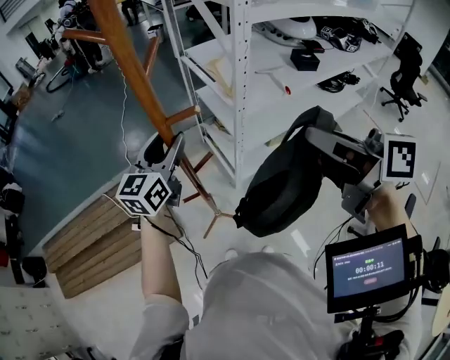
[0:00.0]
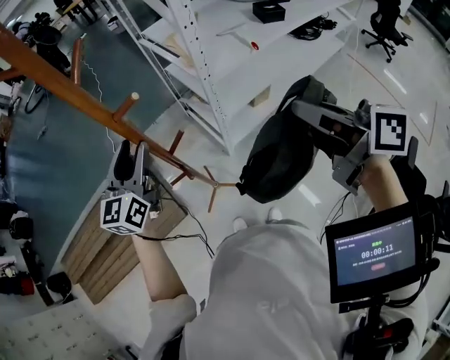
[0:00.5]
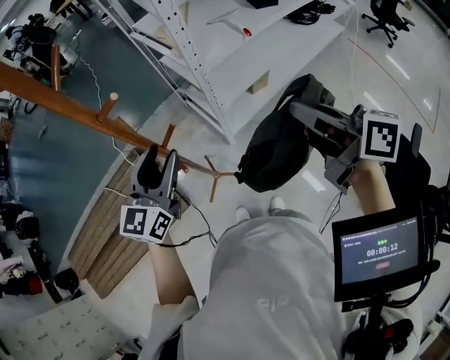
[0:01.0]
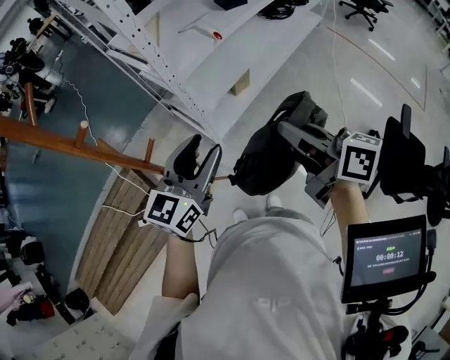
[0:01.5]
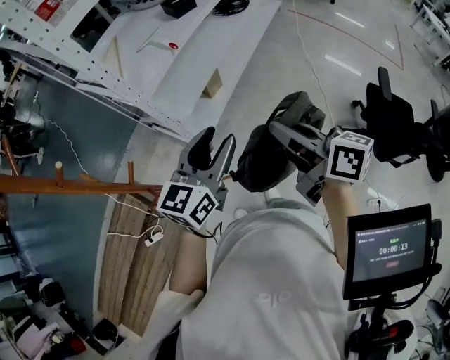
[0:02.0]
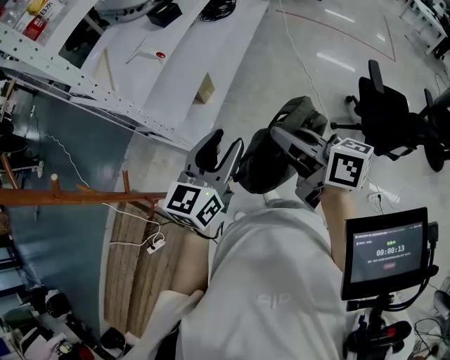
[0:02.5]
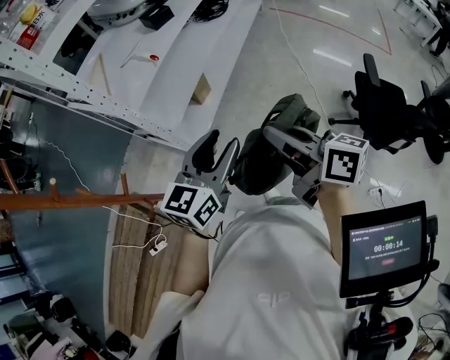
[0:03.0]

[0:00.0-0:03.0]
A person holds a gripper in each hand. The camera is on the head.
0:00.0 to 0:01.5: The right gripper goes approximately 15 cm downward, and changes its angle by some 20 degrees. The left gripper ends up some 25 cm from where it was, and rotates approximately 30 degrees.
0:01.5 to 0:03.0: The right gripper travels to the right by some 10 cm; the left gripper travels to the right by roughly 15 cm.

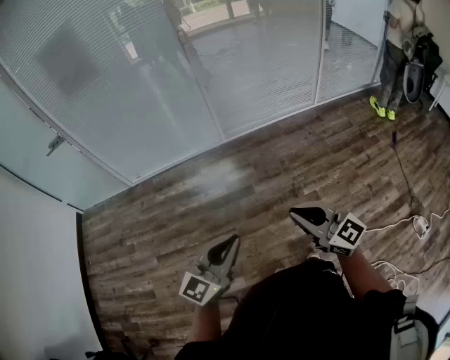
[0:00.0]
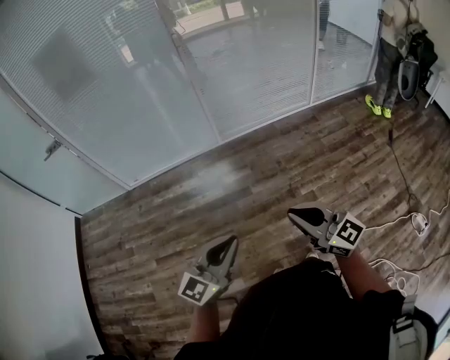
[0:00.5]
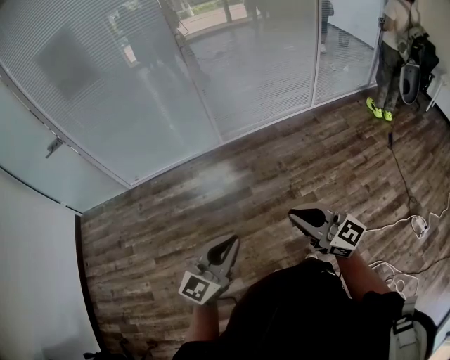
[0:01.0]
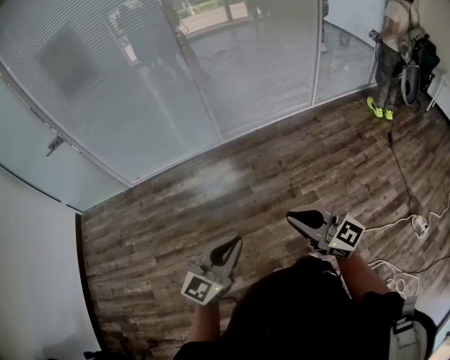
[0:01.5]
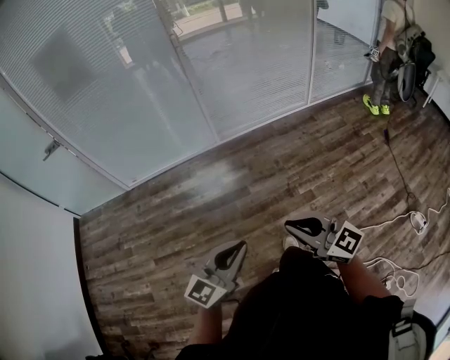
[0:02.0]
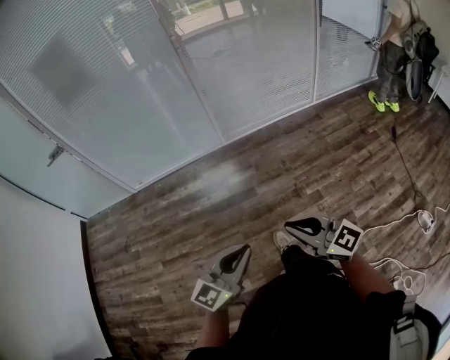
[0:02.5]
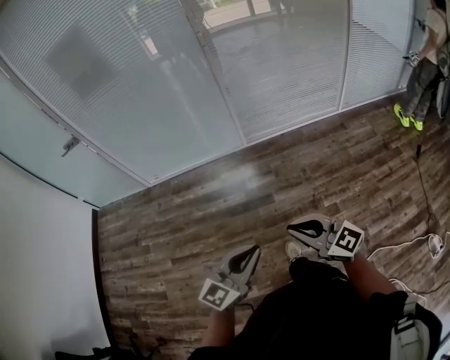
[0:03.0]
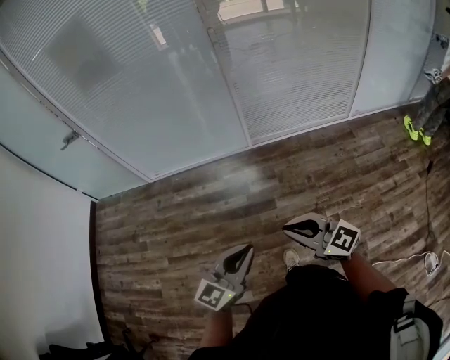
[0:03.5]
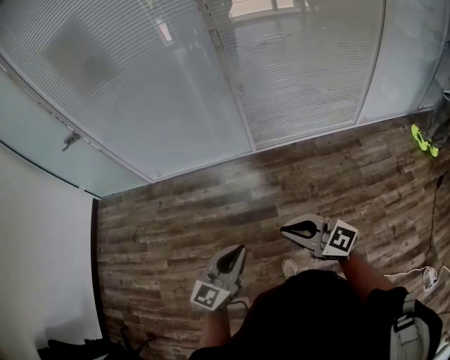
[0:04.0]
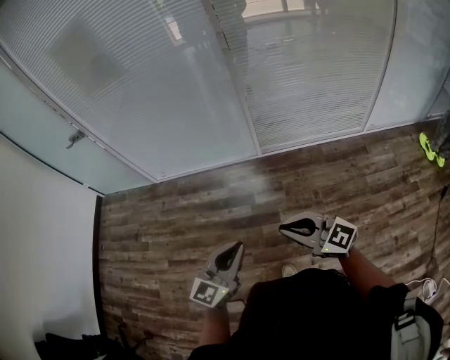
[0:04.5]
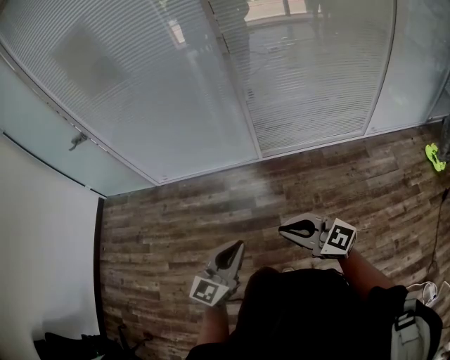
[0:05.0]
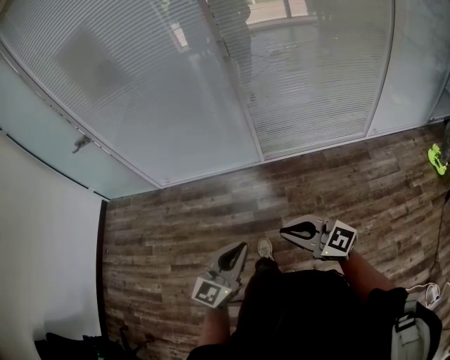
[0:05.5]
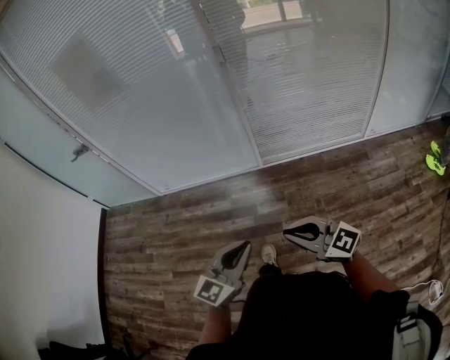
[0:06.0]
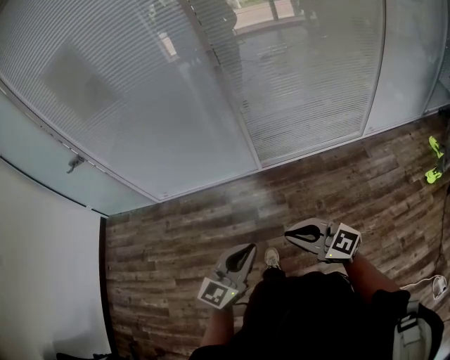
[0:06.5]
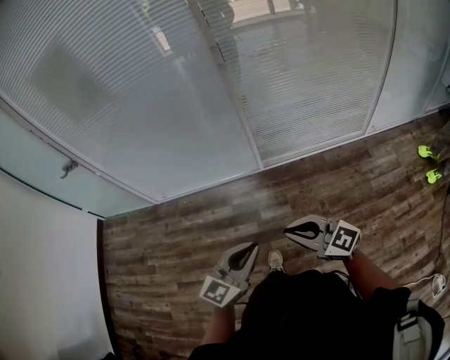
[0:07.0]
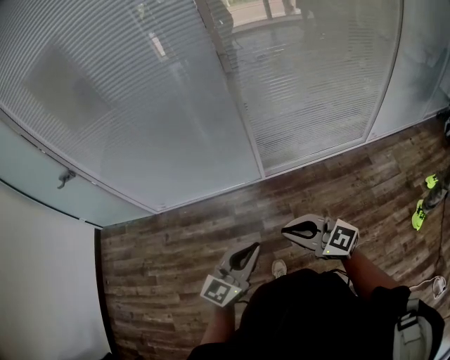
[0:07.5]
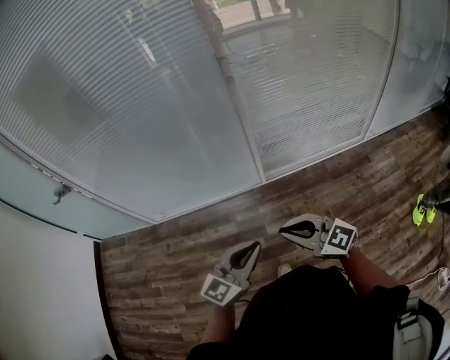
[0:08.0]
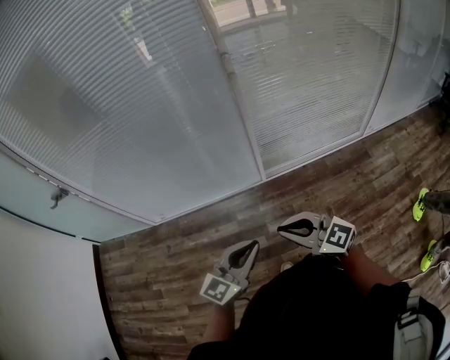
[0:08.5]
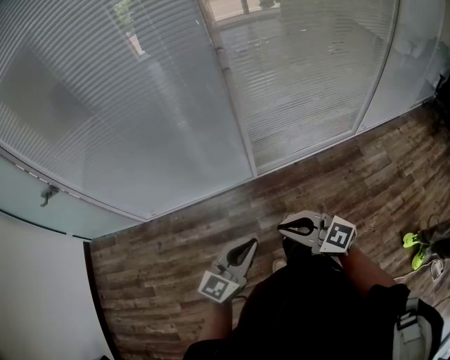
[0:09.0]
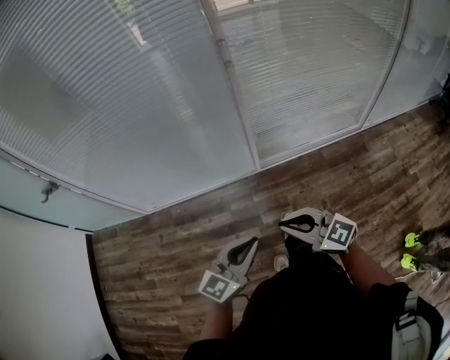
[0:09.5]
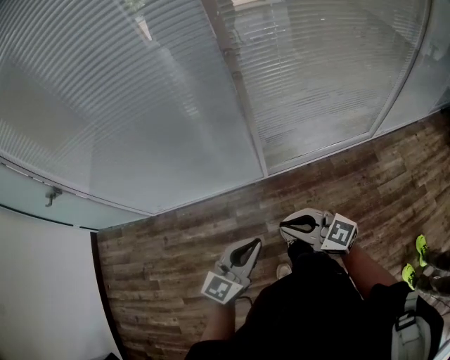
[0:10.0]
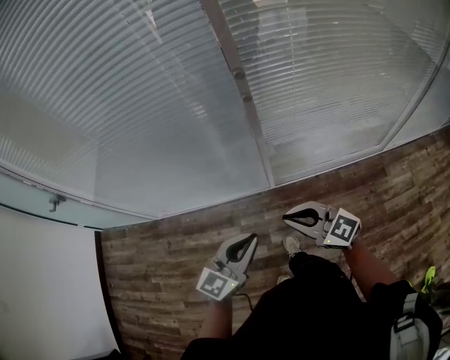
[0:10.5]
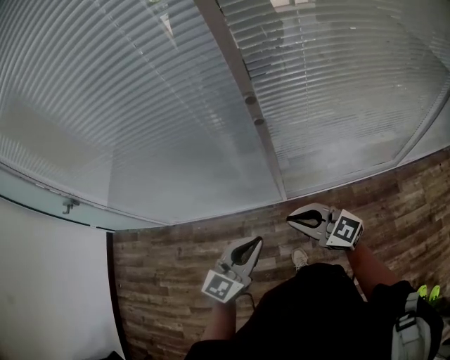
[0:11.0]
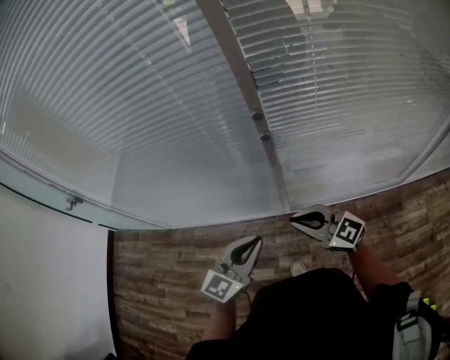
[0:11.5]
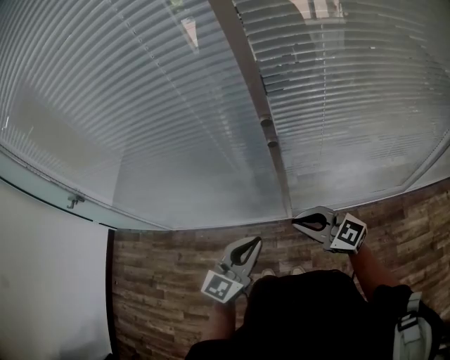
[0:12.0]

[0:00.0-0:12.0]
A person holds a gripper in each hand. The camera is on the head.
0:00.0 to 0:02.0: The grippers make only small movements.
0:02.0 to 0:04.0: The grippers both shift forward by approximately 25 cm. The right gripper turns by roughly 20 degrees.
0:04.0 to 0:06.0: The left gripper shifts by approximately 5 cm. Meanwhile the right gripper ends up some 5 cm from where it was.
0:06.0 to 0:08.0: The grippers both shift forward by approximately 20 cm.
0:08.0 to 0:10.0: The grippers both shift forward by roughly 10 cm.
0:10.0 to 0:12.0: The left gripper moves forward, roughly 20 cm, while the right gripper goes approximately 20 cm forward and to the right.

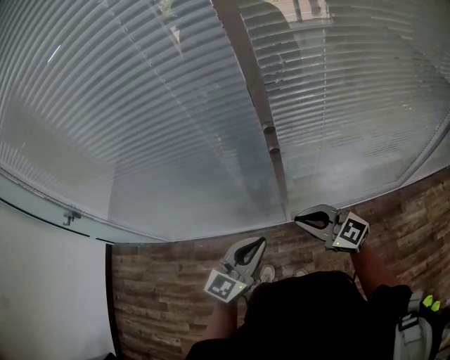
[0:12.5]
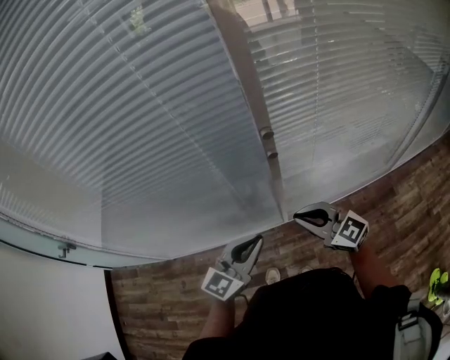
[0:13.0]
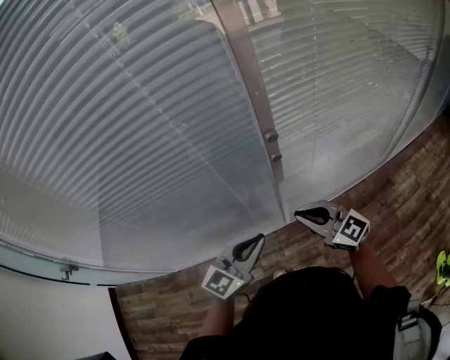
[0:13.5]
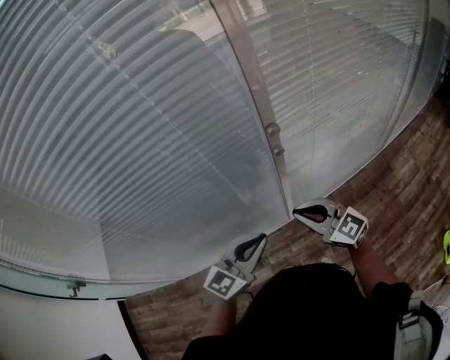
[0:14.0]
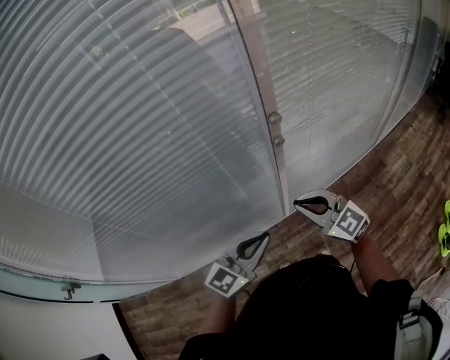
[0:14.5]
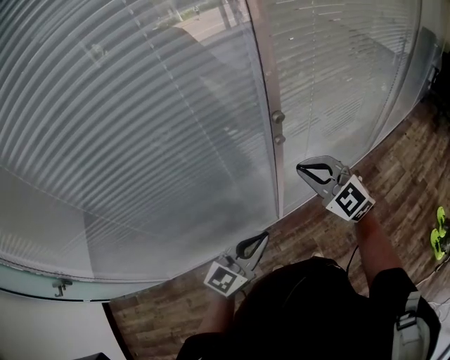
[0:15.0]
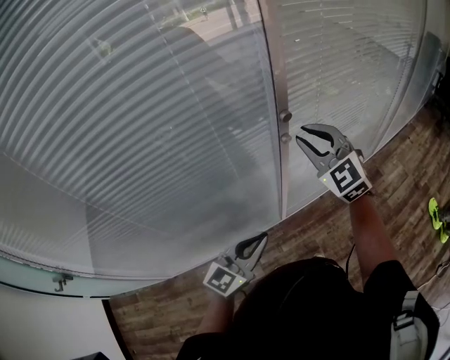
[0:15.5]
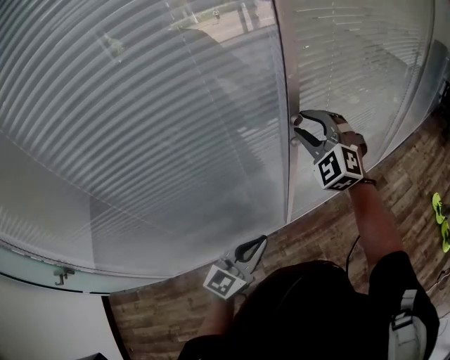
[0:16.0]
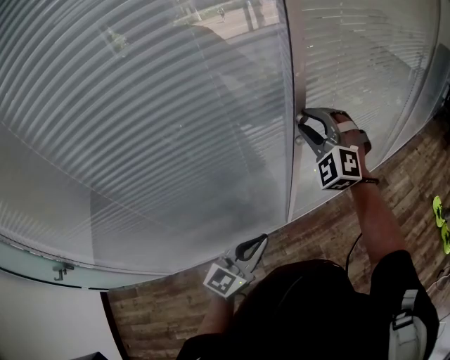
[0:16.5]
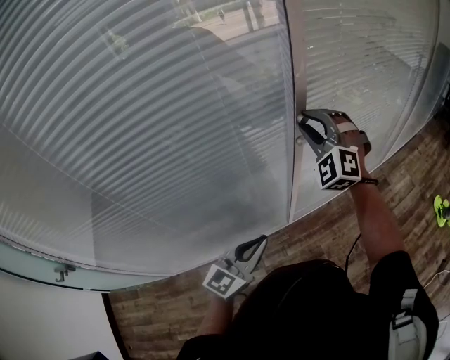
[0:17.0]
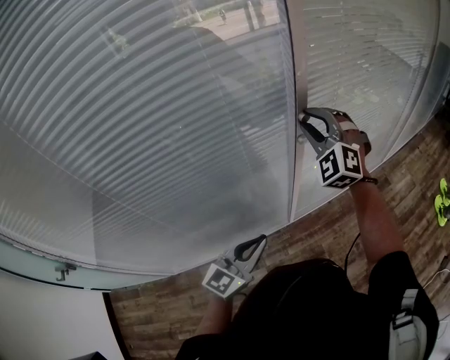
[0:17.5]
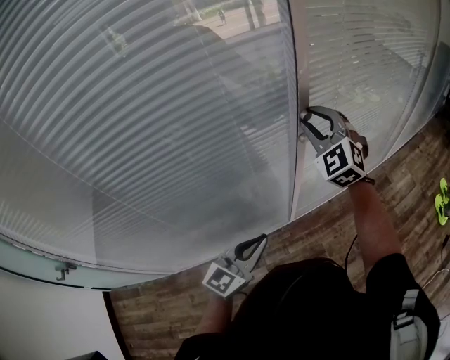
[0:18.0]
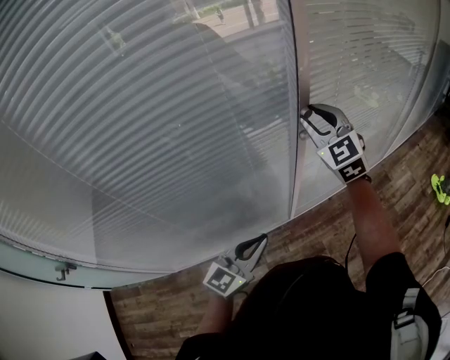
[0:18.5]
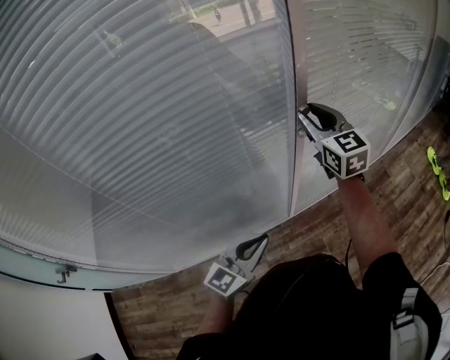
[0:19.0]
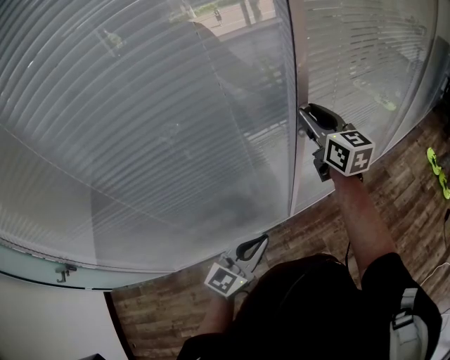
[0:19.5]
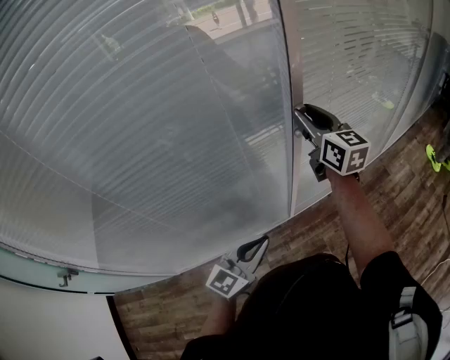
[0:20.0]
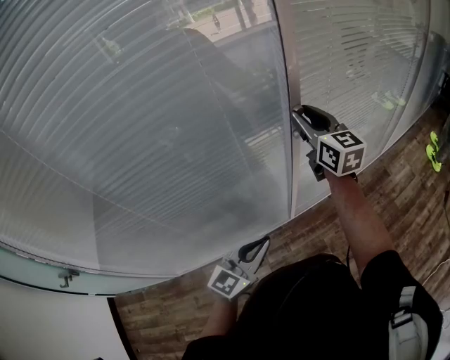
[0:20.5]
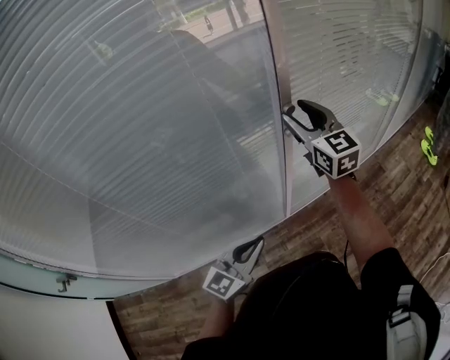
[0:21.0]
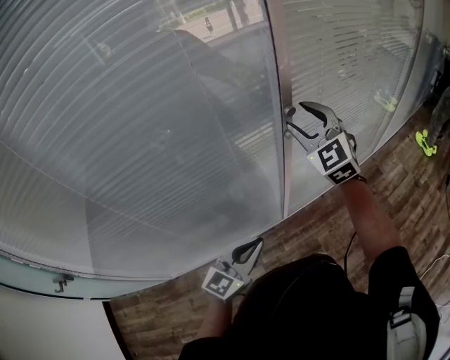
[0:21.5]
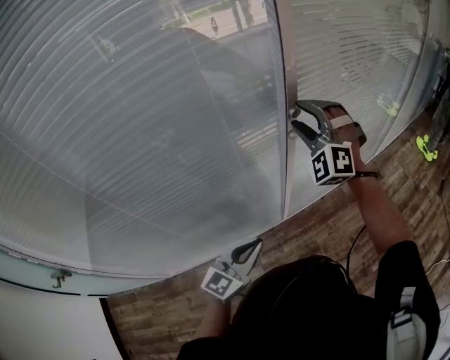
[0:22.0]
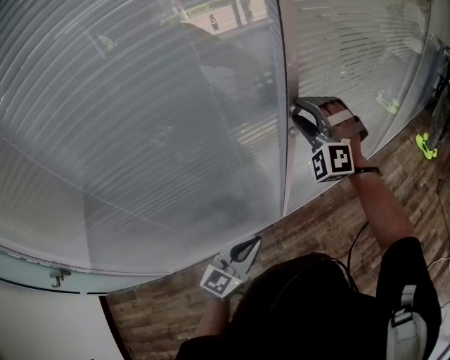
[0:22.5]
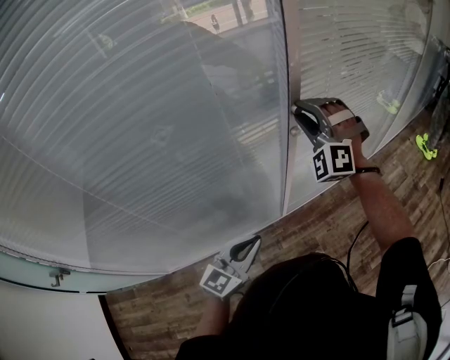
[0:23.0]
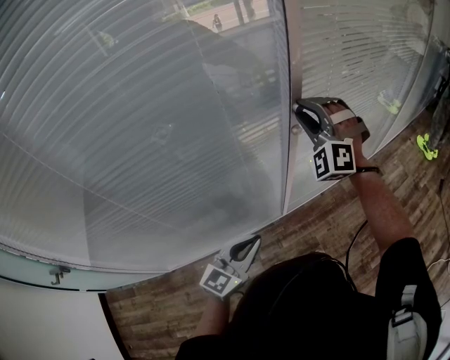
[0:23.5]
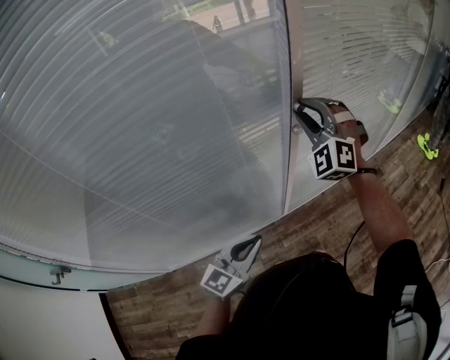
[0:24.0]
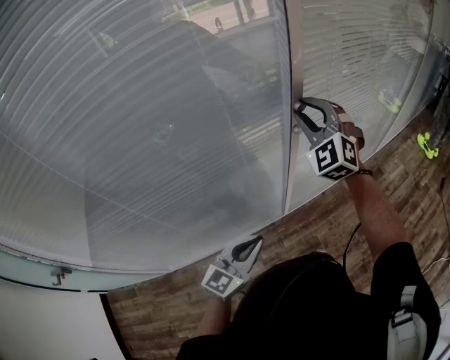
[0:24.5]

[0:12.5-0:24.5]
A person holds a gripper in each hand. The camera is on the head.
0:12.5 to 0:14.5: The left gripper moves some 10 cm, and swivels roughly 30 degrees. The right gripper shifts by approximately 10 cm, and rotates roughly 30 degrees.
0:14.5 to 0:16.5: The right gripper travels forward and upward by some 20 cm, rolls counterclockwise, seen from behind, by about 50 degrees, and opens its fingers.
0:16.5 to 0:18.5: The right gripper swivels roughly 40 degrees.
0:18.5 to 0:20.5: The right gripper swivels roughly 40 degrees.
0:20.5 to 0:22.5: The right gripper rotates around the line of its fingers by about 90 degrees, counterclockwise from behind.
0:22.5 to 0:24.5: The right gripper swivels about 30 degrees.
